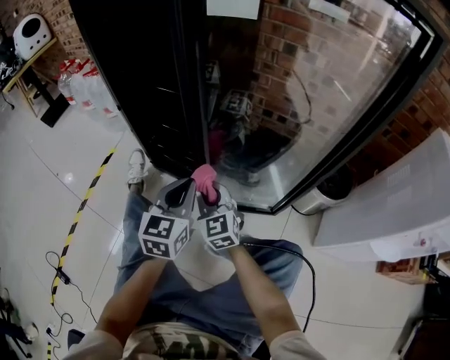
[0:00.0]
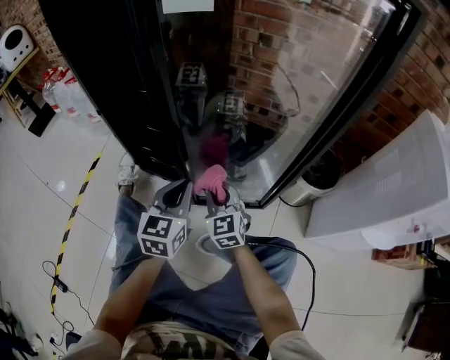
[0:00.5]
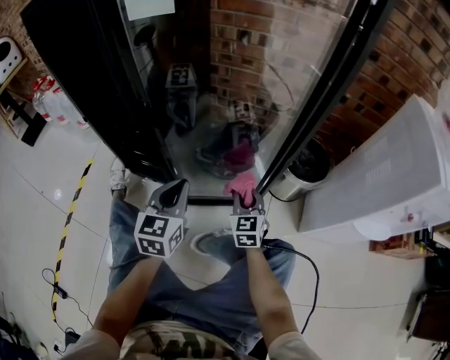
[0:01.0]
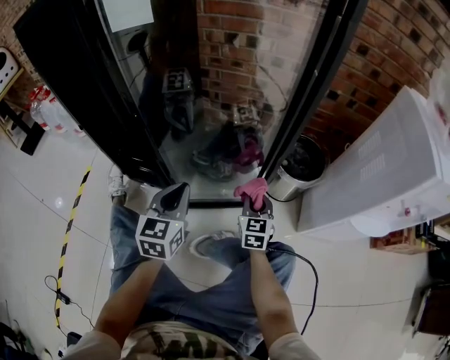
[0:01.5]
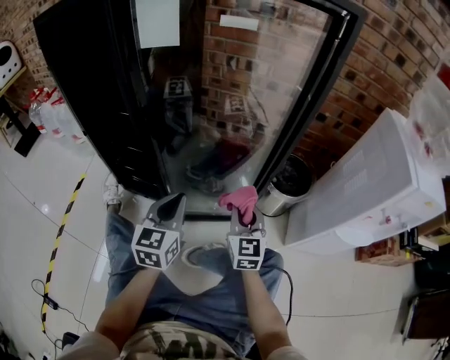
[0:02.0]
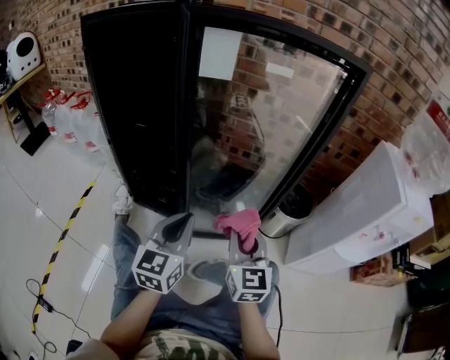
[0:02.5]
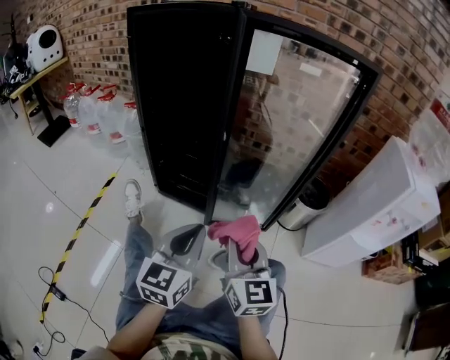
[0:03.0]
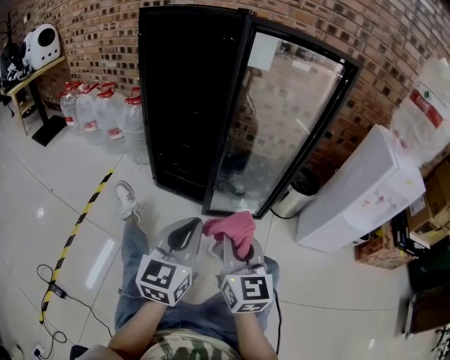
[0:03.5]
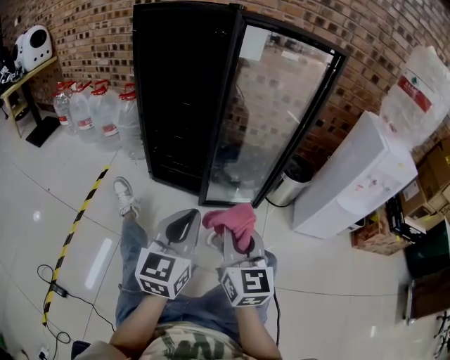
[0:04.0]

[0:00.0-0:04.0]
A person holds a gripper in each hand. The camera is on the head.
0.0 to 2.0 s: The right gripper shifts some 25 cm to the right, and swivels about 30 degrees, while the left gripper moves to the right, approximately 10 cm.
2.0 to 4.0 s: The left gripper travels backward, upward and to the left by about 35 cm, while the right gripper shifts approximately 40 cm backward, to the left and upward.

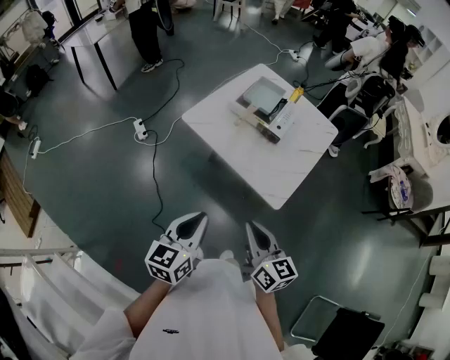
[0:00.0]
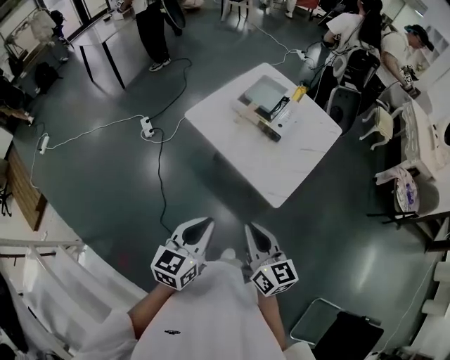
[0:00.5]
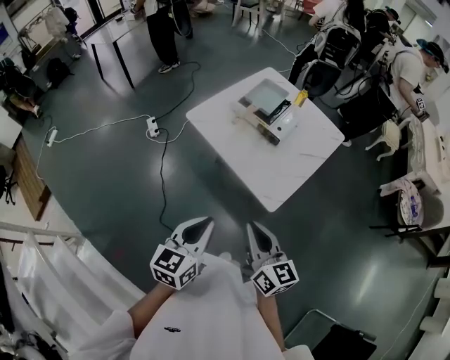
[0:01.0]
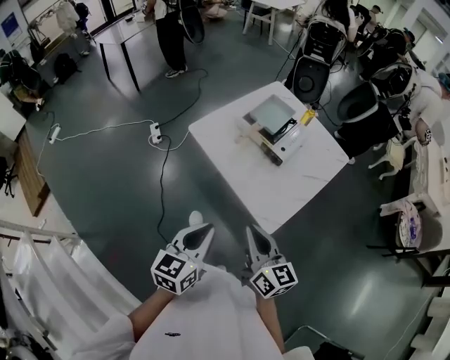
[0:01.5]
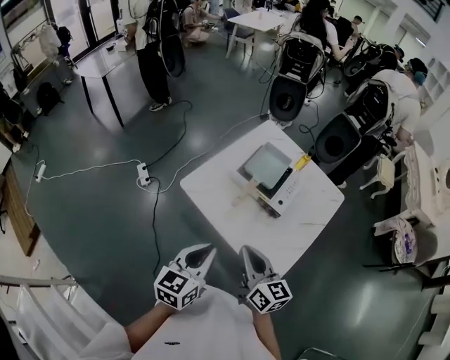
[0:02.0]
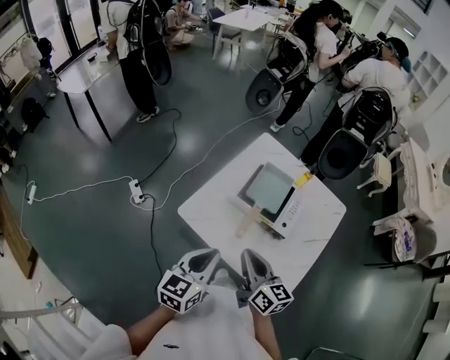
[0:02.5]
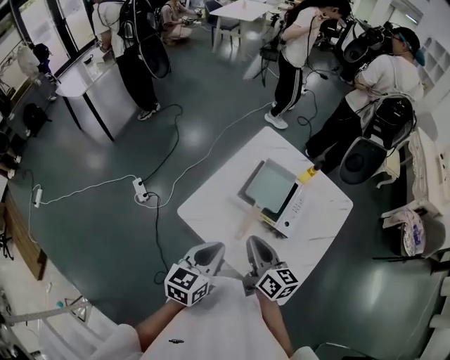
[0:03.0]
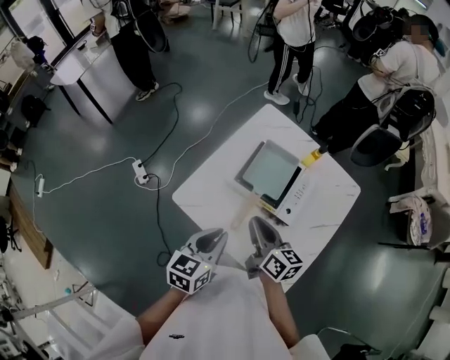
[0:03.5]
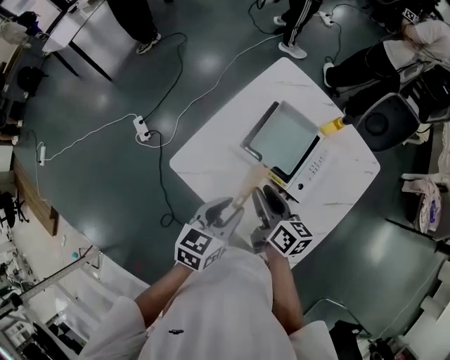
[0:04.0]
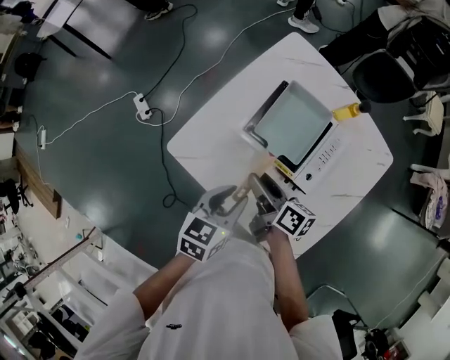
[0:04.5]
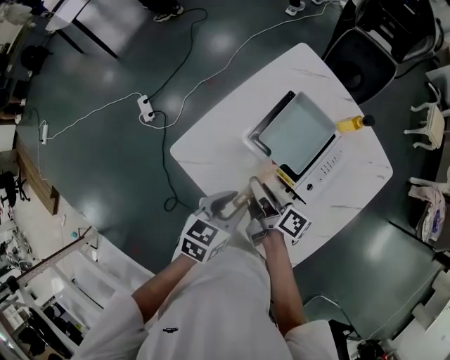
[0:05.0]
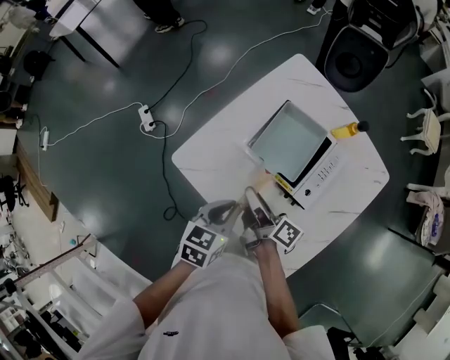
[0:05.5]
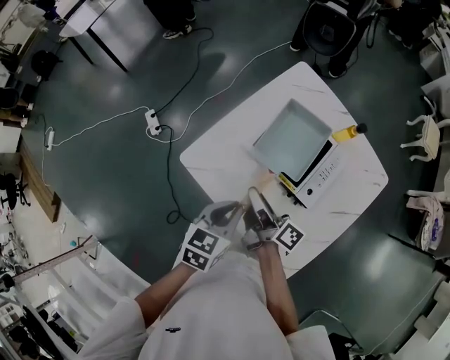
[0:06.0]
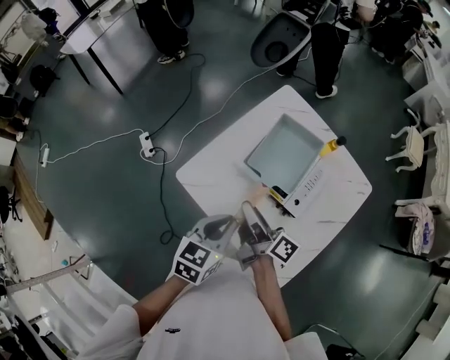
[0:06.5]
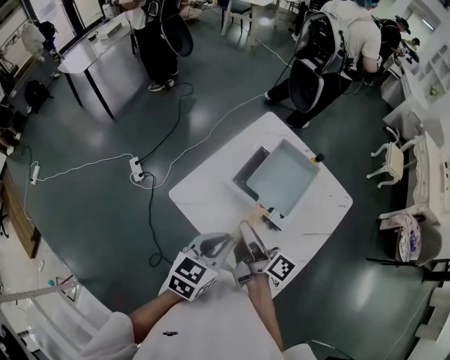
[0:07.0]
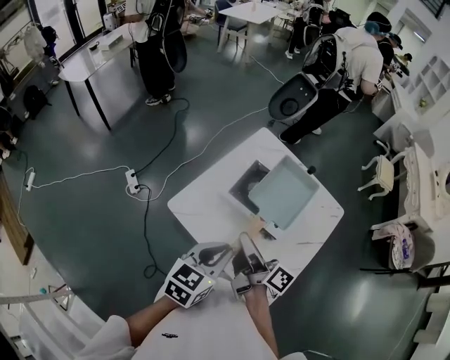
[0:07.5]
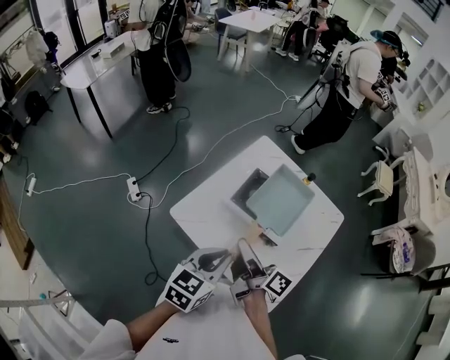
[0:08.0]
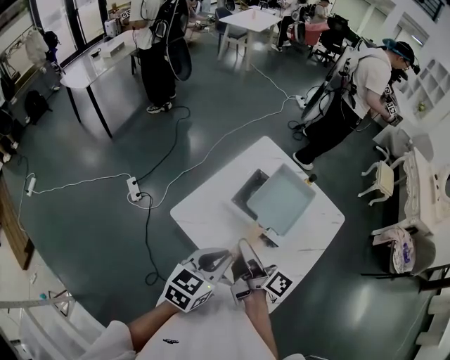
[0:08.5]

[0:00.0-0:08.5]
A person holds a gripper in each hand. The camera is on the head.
0.0 to 2.0 s: The grippers both shift forward by roughly 20 cm.
2.0 to 4.0 s: The grippers both shift forward and downward by some 25 cm. The left gripper opens, while the right gripper changes its angle by roughly 30 degrees, and opens.
4.0 to 6.5 s: The right gripper goes approximately 5 cm upward, and rotates some 30 degrees, while the left gripper ends up roughly 5 cm from where it was.
6.5 to 8.5 s: The right gripper heads upward and backward, covering roughly 10 cm, while the left gripper heads upward, covering some 10 cm.

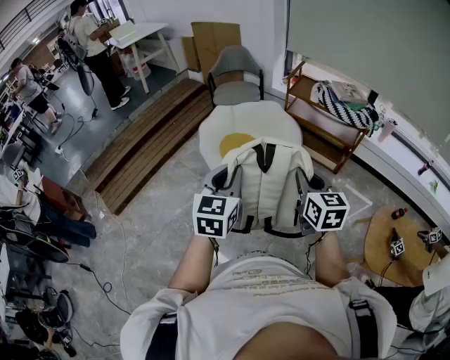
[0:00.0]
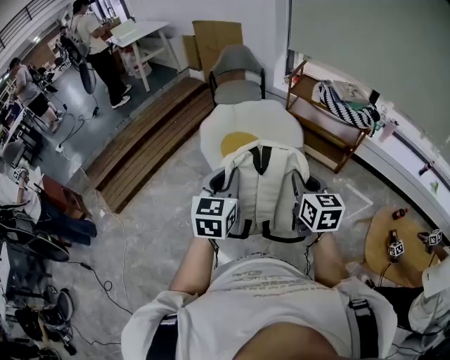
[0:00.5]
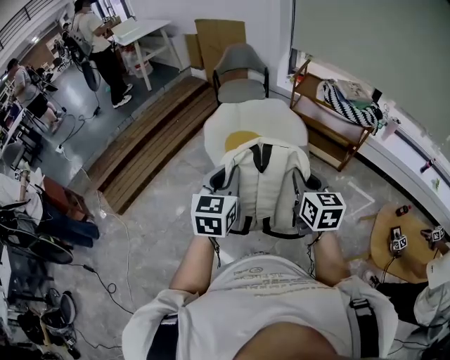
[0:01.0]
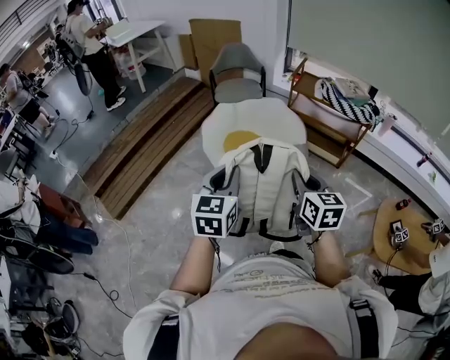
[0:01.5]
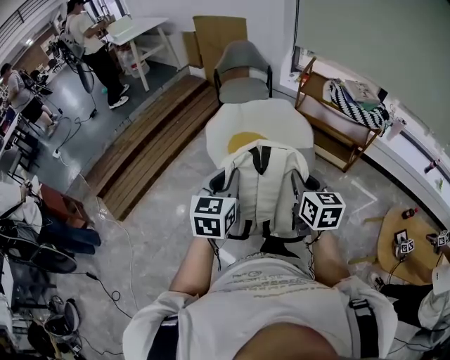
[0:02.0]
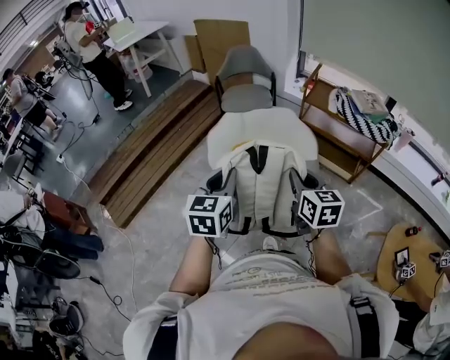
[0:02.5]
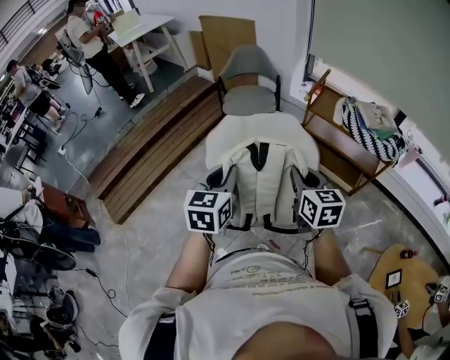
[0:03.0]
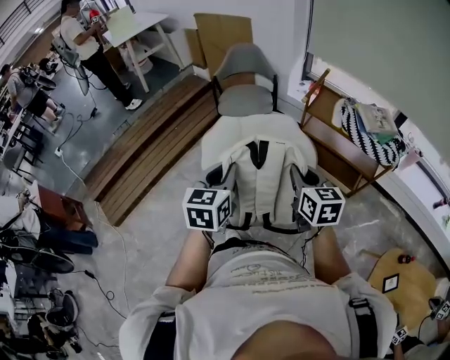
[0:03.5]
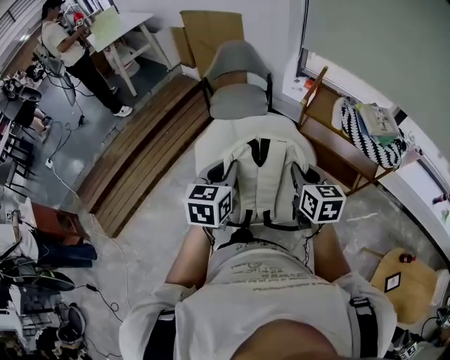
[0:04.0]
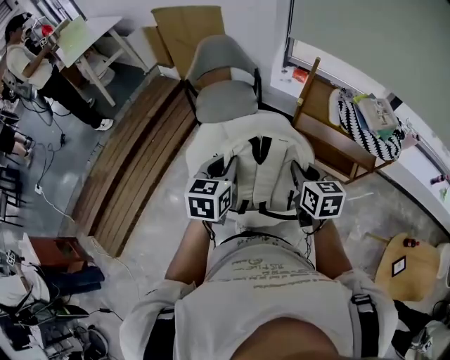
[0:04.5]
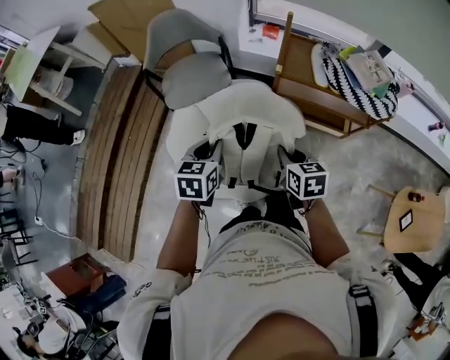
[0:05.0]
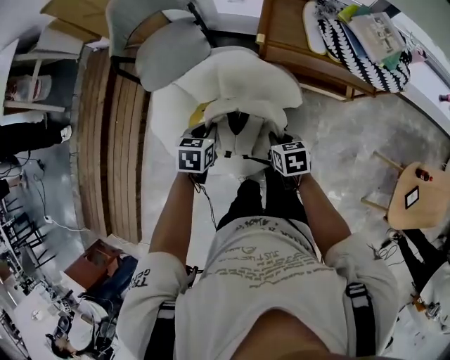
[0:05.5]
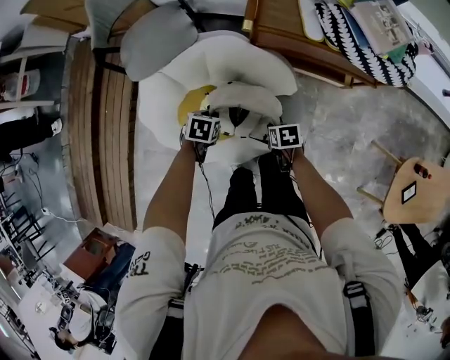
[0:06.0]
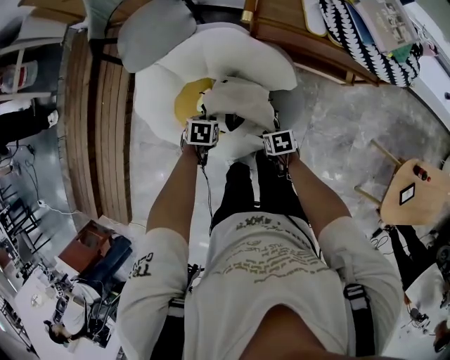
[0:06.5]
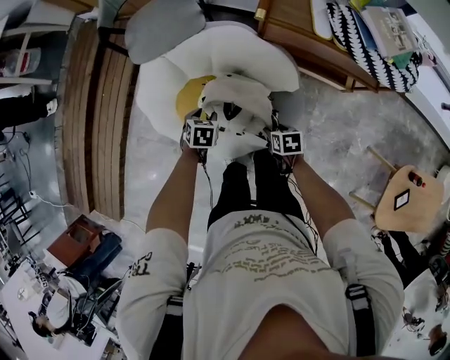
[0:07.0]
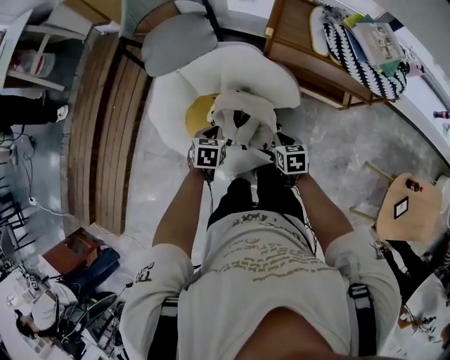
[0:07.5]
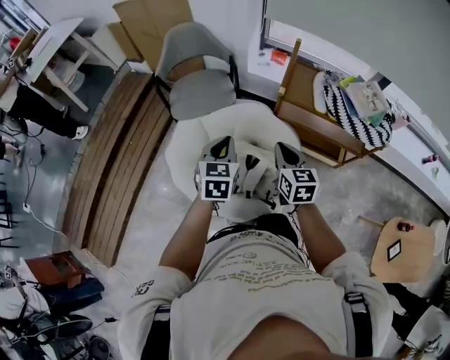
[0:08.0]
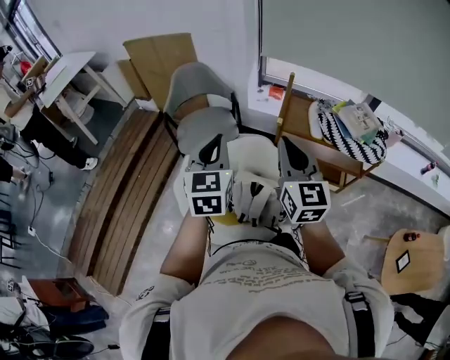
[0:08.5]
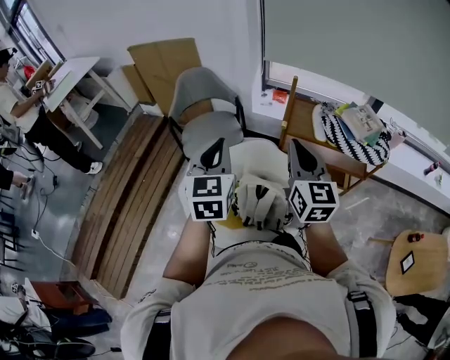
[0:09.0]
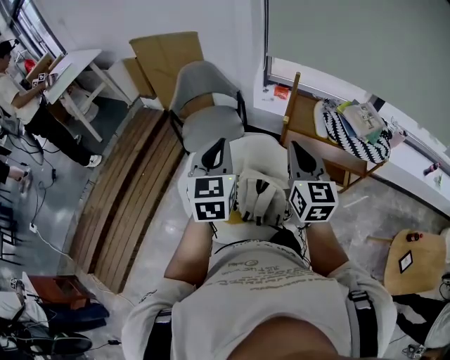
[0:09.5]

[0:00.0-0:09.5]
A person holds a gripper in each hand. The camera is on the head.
0.0 to 2.0 s: The grippers both shift to the left and forward by about 10 cm.
2.0 to 4.0 s: The grippers both shift forward by roughly 35 cm.
4.0 to 5.5 s: The two grippers go roughly 35 cm downward and forward. The left gripper points its fingers some 30 degrees further downward, while the right gripper points its fingers about 30 degrees further downward.
5.5 to 7.5 s: The right gripper travels downward and back again, approximately 15 cm each way, and opens, then closes again; the left gripper shifts approximately 10 cm downward and backward, and opens, then closes again.
7.5 to 9.5 s: The two grippers go some 40 cm upward. The left gripper tips its fingers upward by about 50 degrees. The right gripper tilts its fingers about 50 degrees upward.

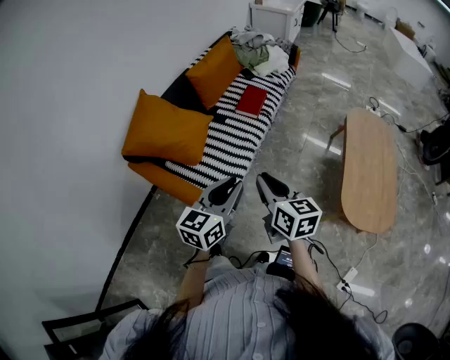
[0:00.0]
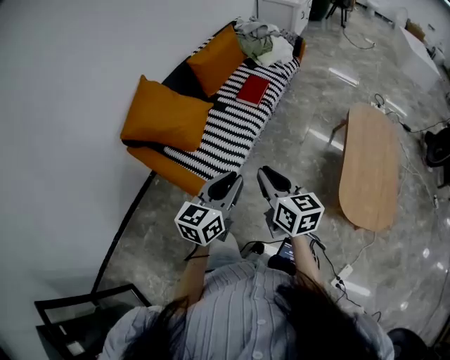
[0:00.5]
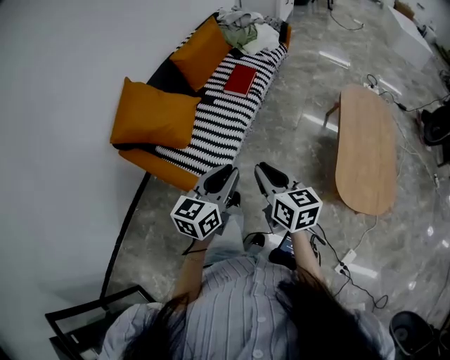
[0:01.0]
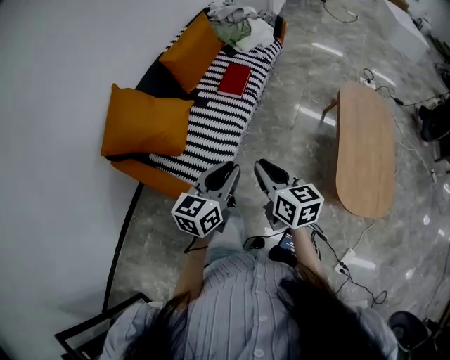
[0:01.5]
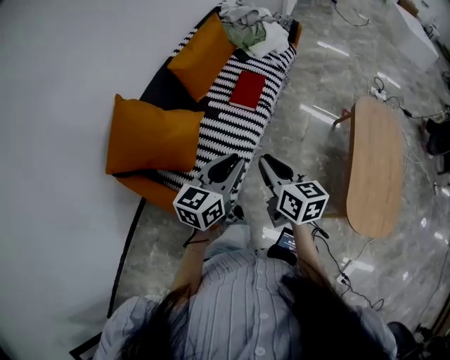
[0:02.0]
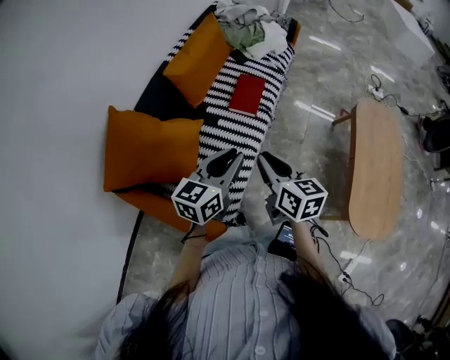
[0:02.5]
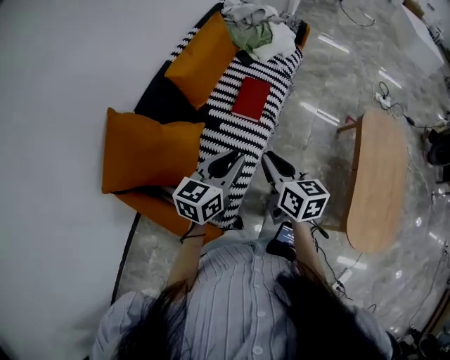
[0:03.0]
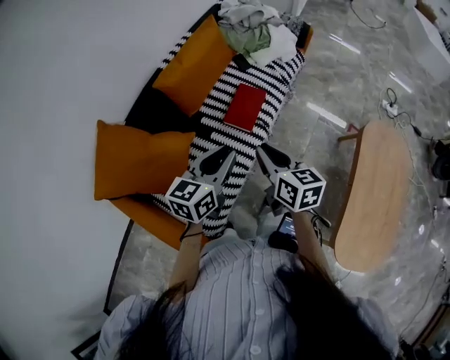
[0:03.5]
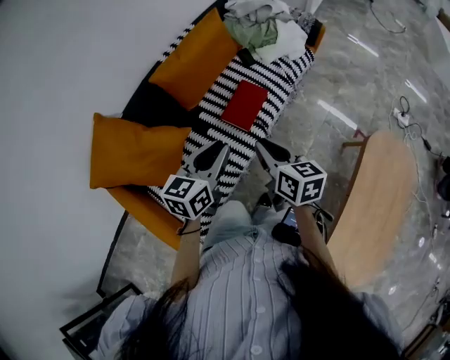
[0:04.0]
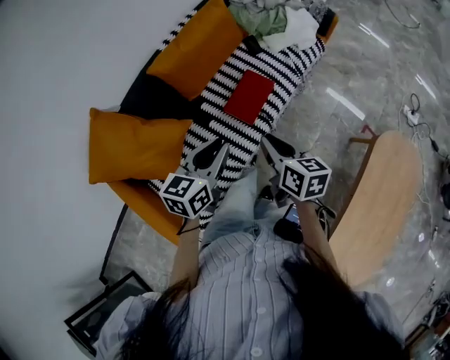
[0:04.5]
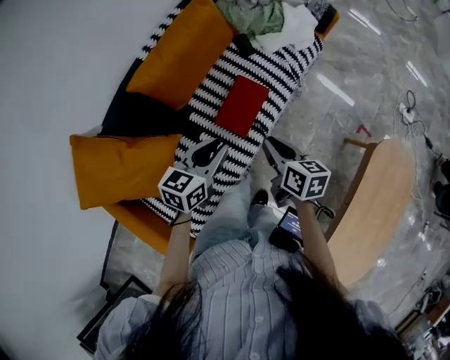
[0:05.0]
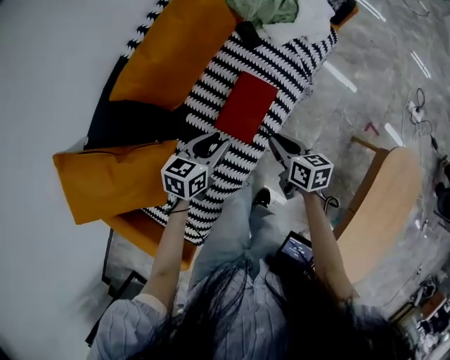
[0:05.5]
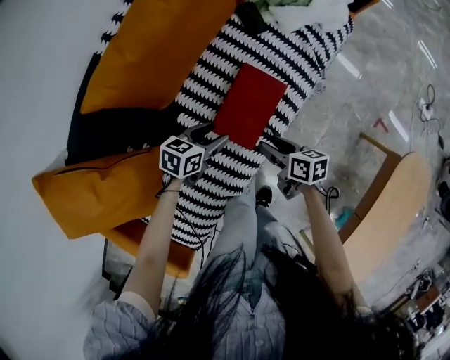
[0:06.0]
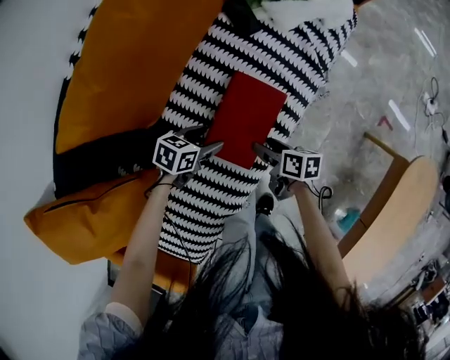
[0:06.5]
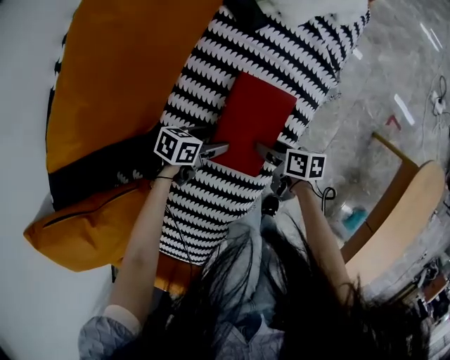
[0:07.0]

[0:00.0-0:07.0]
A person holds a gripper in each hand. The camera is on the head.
0.0 to 2.0 s: Both grippers travel together forward, about 25 cm.
2.0 to 3.5 s: Both grippers move forward, roughly 25 cm.
3.5 to 5.0 s: Both grippers travel together forward and downward, approximately 25 cm.
5.0 to 7.0 s: Both grippers travel together downward, about 40 cm. The left gripper swivels some 50 degrees, and opens up. Meanwhile the right gripper rotates roughly 30 degrees, and opens.
